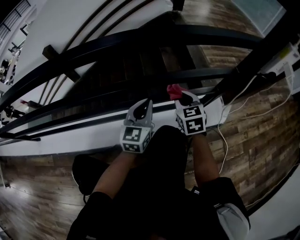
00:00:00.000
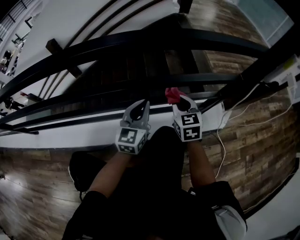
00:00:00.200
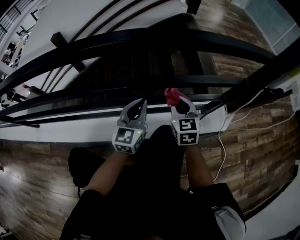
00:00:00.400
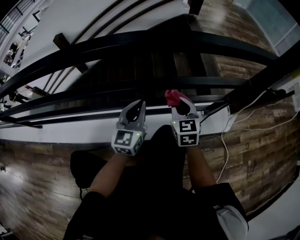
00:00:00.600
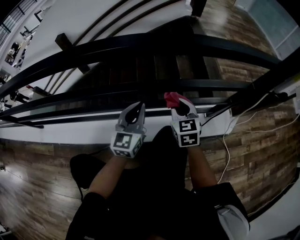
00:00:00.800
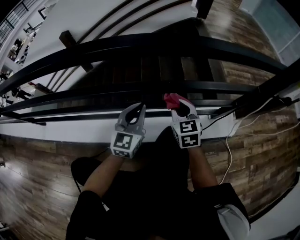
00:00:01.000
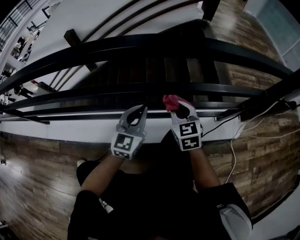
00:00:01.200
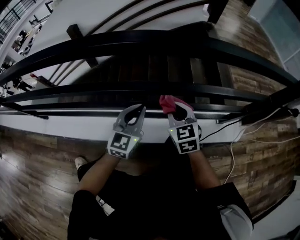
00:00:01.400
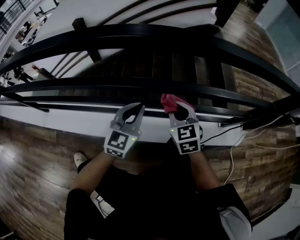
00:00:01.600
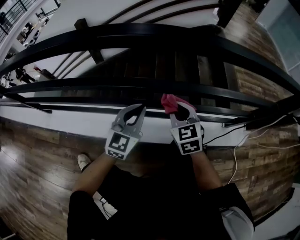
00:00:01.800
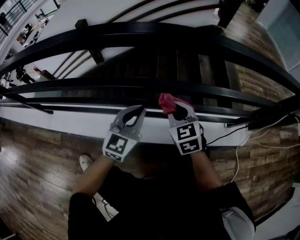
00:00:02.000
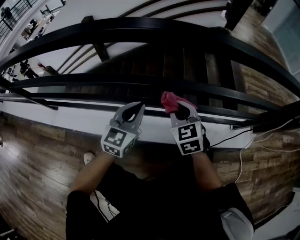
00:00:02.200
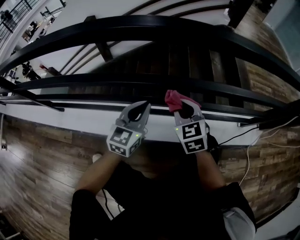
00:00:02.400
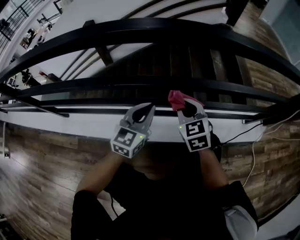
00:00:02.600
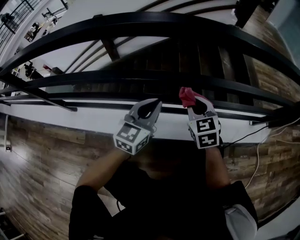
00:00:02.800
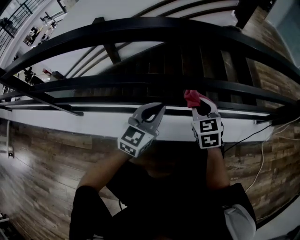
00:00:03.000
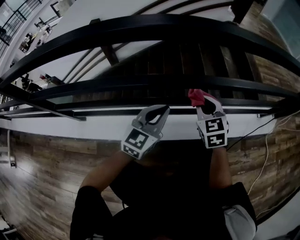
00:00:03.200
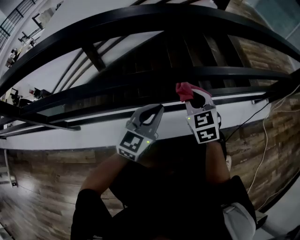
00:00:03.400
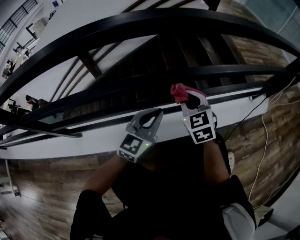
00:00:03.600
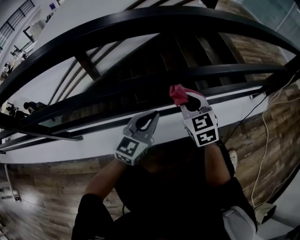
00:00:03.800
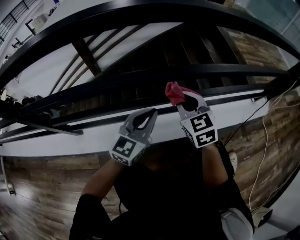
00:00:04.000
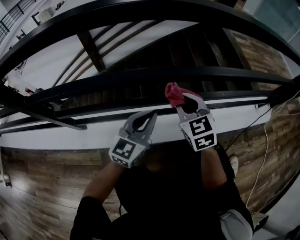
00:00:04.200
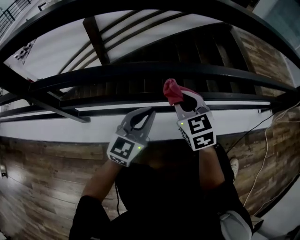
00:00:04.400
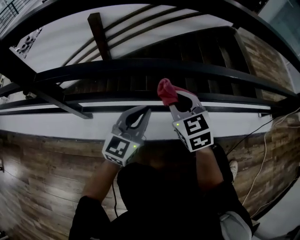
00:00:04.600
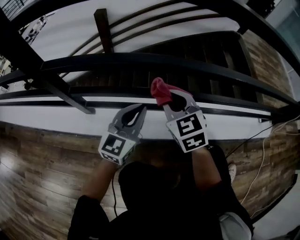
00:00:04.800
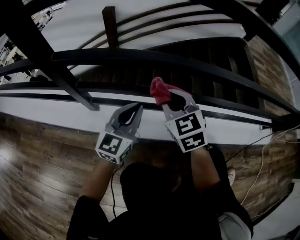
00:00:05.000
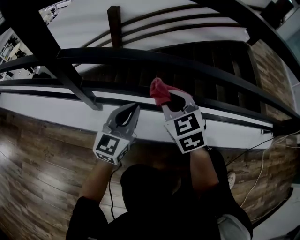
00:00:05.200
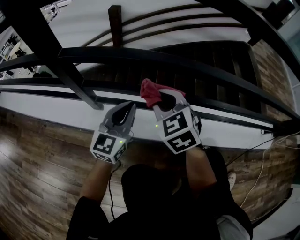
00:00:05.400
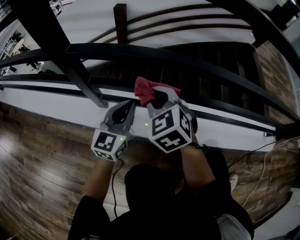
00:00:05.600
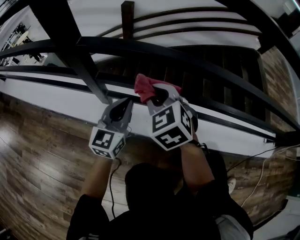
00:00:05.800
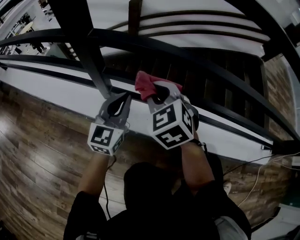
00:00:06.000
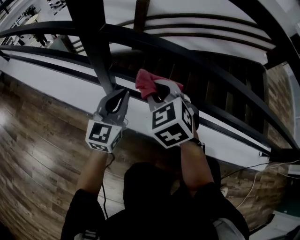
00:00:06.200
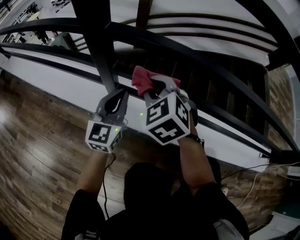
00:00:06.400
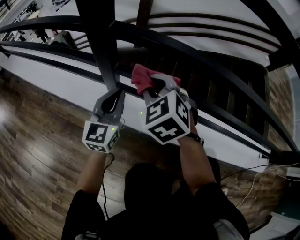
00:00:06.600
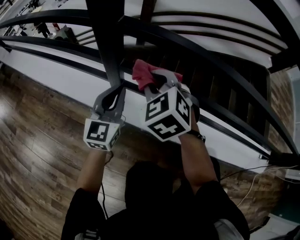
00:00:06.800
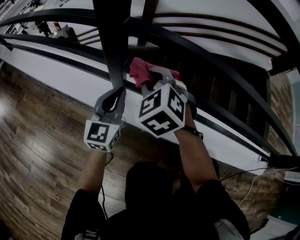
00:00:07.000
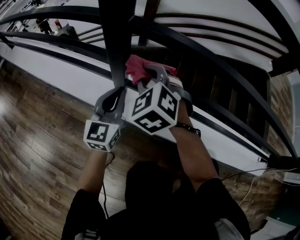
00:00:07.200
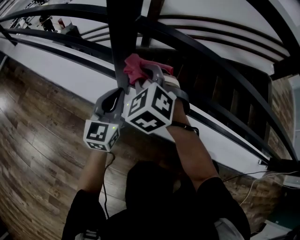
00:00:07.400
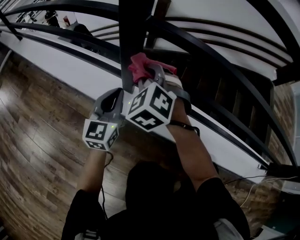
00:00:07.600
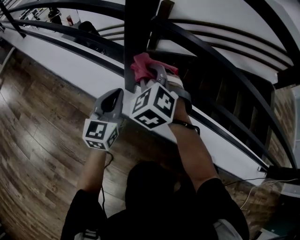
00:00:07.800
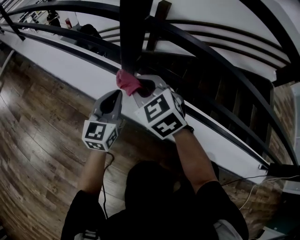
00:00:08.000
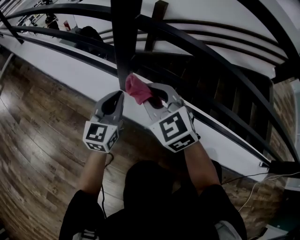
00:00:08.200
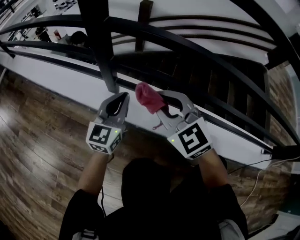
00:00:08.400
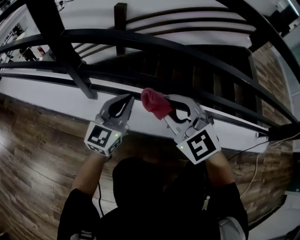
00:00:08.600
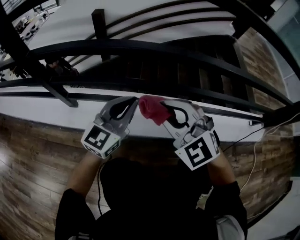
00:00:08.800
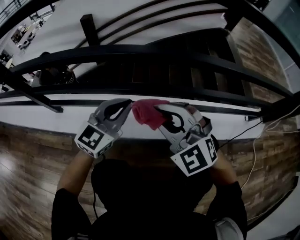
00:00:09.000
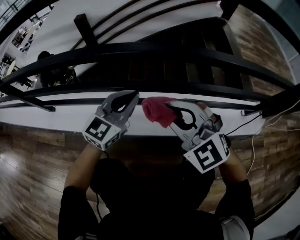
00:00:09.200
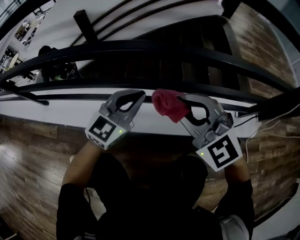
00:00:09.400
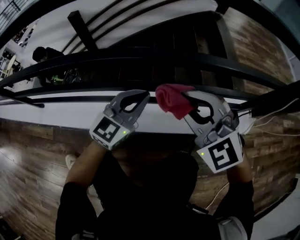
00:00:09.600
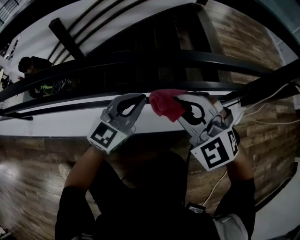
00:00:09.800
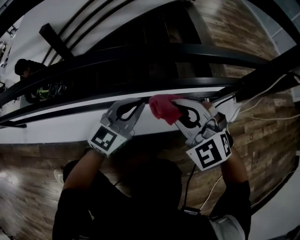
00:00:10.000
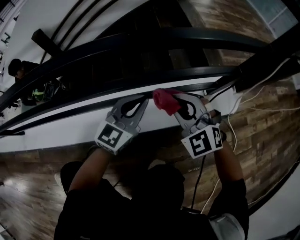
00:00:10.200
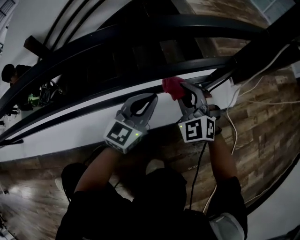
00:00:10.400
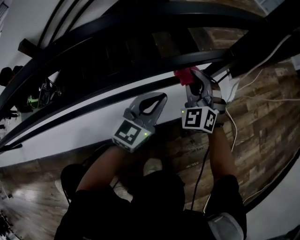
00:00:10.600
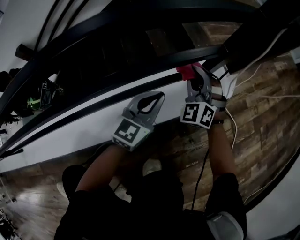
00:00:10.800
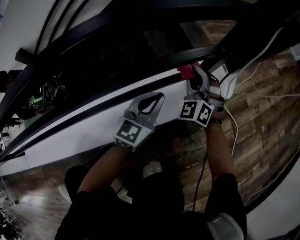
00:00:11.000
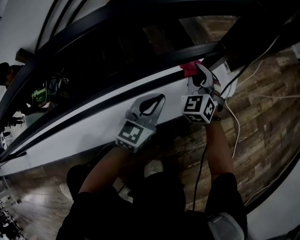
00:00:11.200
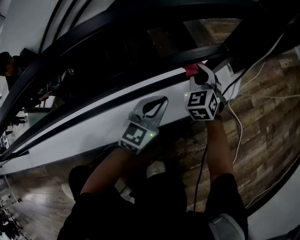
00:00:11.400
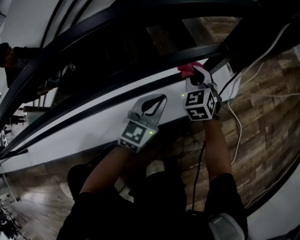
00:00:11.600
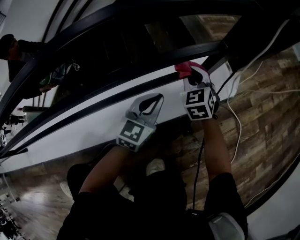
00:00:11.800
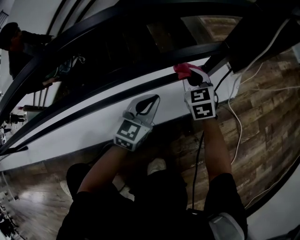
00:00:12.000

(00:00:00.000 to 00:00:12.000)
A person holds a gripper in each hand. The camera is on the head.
00:00:00.000 - 00:00:01.600: The two grippers go roughly 20 cm to the left.
00:00:01.600 - 00:00:03.000: The grippers both shift to the left by approximately 15 cm.
00:00:03.000 - 00:00:04.400: The right gripper goes about 20 cm to the left; the left gripper heads to the left and backward, covering about 15 cm.
00:00:04.400 - 00:00:06.000: Both grippers travel together to the left, approximately 25 cm. The right gripper changes its angle by about 30 degrees, while the left gripper changes its angle by approximately 30 degrees.
00:00:06.000 - 00:00:07.600: The two grippers go some 10 cm to the left. The right gripper swivels roughly 20 degrees.
00:00:07.600 - 00:00:09.000: The two grippers travel together, roughly 40 cm. The right gripper rotates roughly 20 degrees; the left gripper rotates some 50 degrees.
00:00:09.000 - 00:00:10.400: The two grippers travel together, roughly 50 cm. The right gripper rotates roughly 40 degrees.
00:00:10.400 - 00:00:12.000: The right gripper is displaced forward, downward and to the right by approximately 10 cm, and changes its angle by roughly 40 degrees; the left gripper heads downward, covering roughly 5 cm.

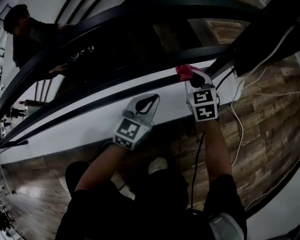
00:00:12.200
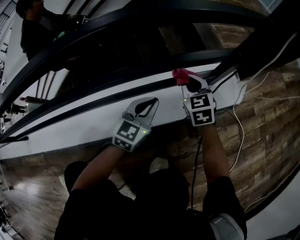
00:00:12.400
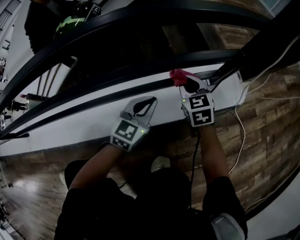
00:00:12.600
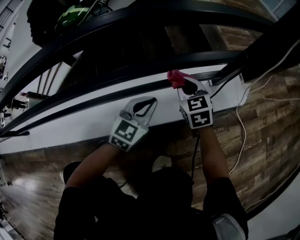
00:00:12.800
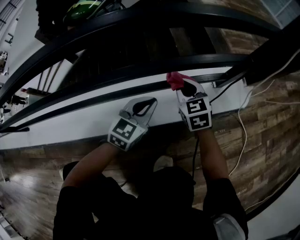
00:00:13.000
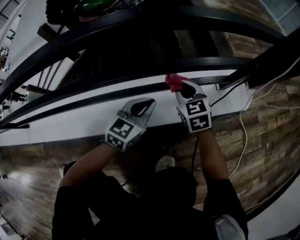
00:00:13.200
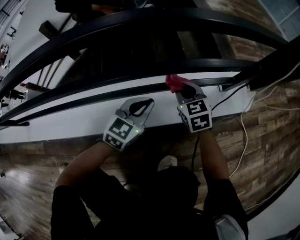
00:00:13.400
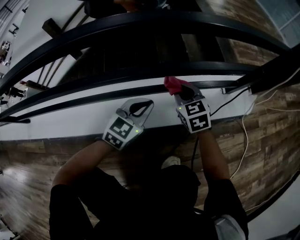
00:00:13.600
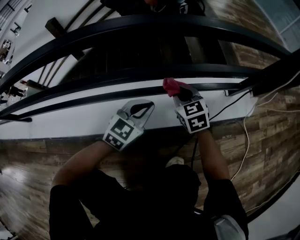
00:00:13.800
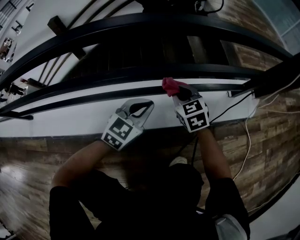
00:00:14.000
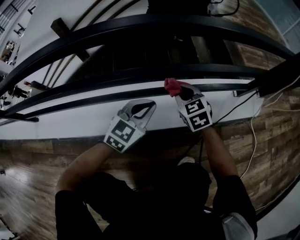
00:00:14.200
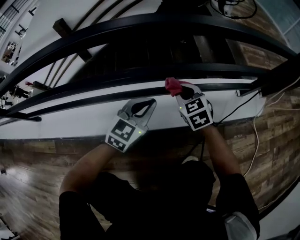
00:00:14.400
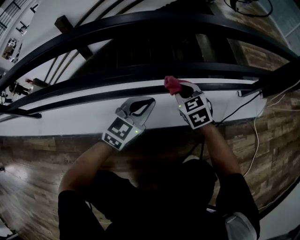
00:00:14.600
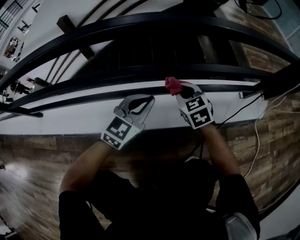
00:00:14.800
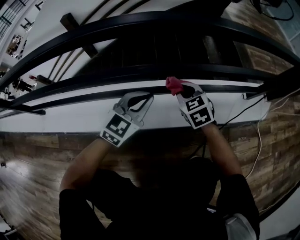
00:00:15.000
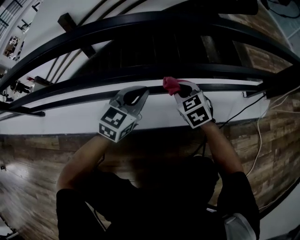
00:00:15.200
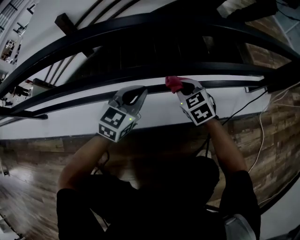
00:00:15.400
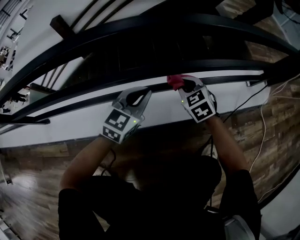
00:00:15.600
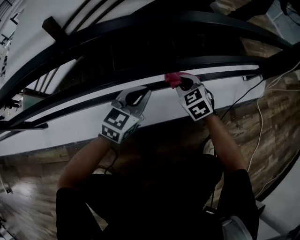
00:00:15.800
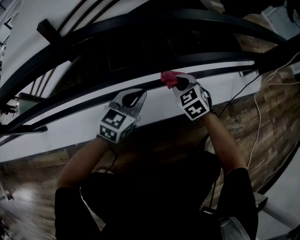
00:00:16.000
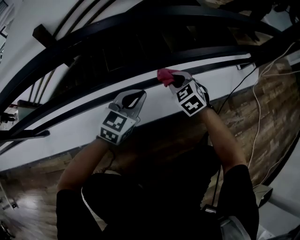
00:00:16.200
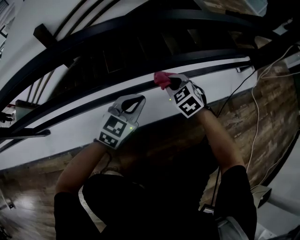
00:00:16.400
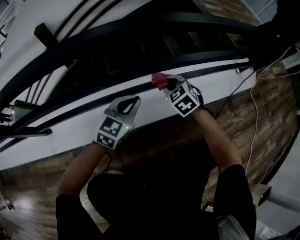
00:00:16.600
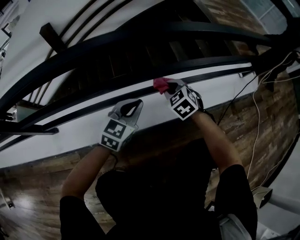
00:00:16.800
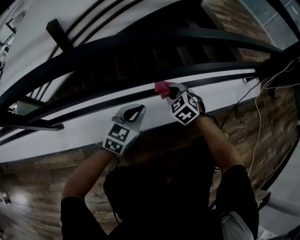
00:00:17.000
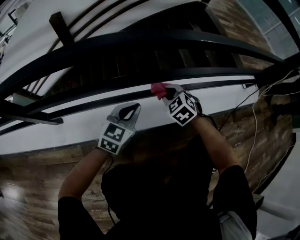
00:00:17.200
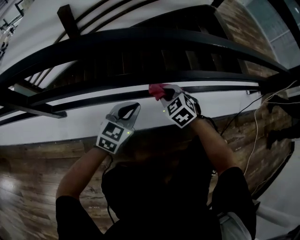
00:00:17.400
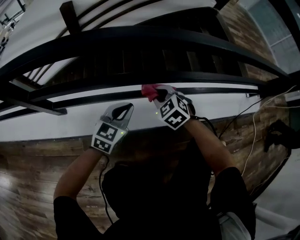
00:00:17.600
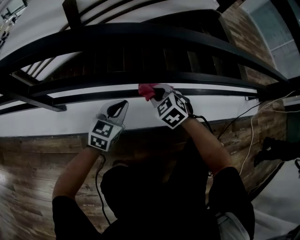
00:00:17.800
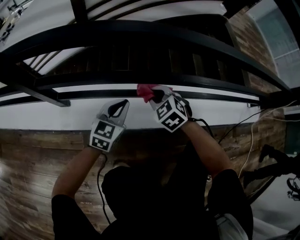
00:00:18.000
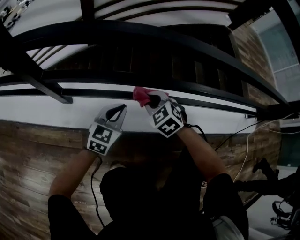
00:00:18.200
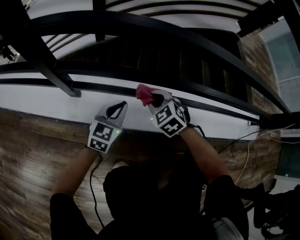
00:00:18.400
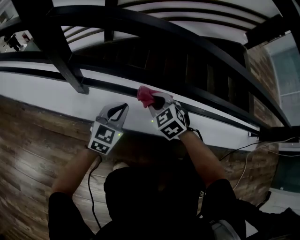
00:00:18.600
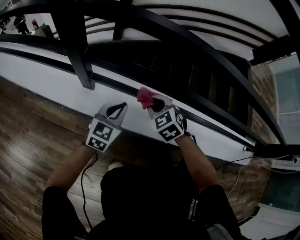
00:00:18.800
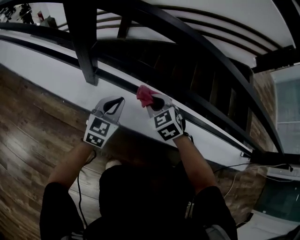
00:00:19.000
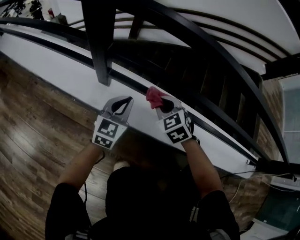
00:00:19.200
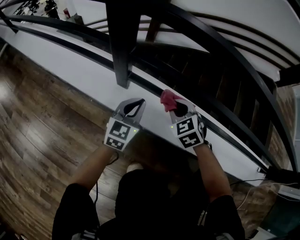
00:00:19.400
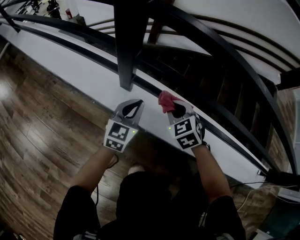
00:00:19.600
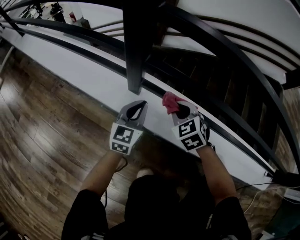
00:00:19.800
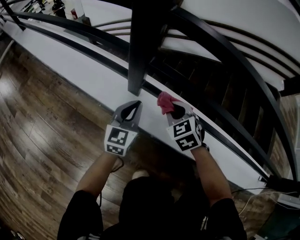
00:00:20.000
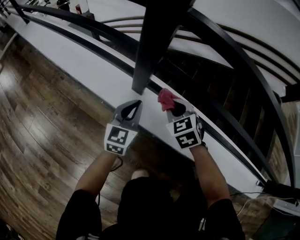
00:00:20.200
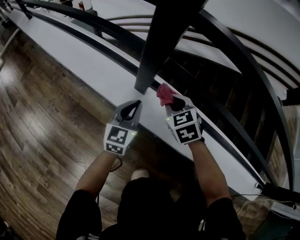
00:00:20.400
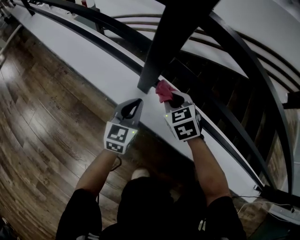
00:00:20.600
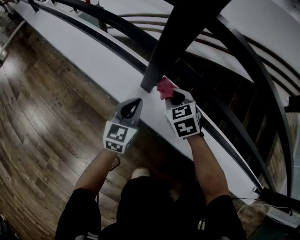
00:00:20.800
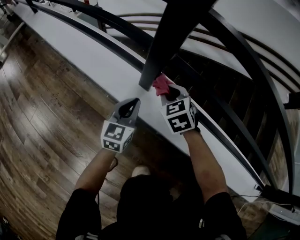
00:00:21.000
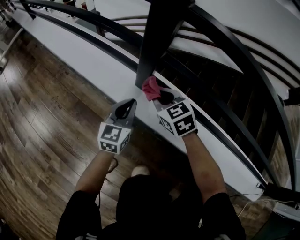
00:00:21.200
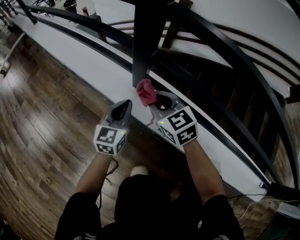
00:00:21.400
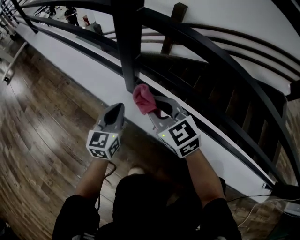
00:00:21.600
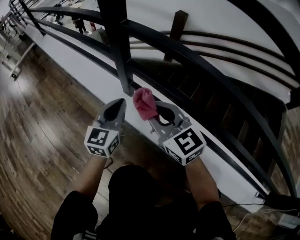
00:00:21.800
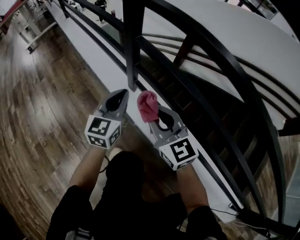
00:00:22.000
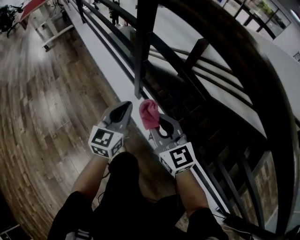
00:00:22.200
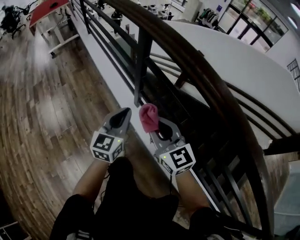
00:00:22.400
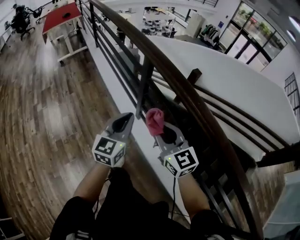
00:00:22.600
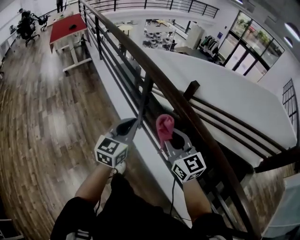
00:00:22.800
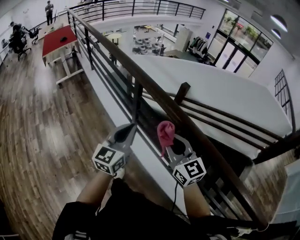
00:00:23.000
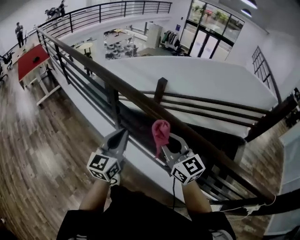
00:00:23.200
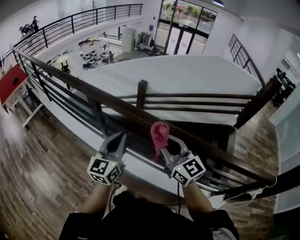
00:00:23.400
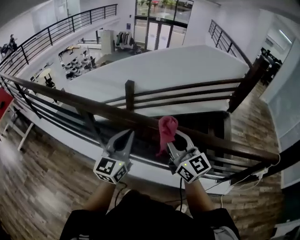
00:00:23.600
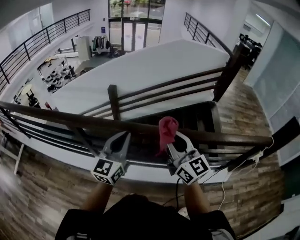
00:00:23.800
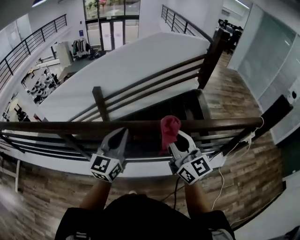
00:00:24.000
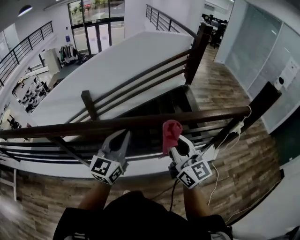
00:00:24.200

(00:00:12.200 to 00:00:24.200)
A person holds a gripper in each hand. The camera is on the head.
00:00:12.200 - 00:00:13.800: Both grippers travel together to the left and backward, some 20 cm.
00:00:13.800 - 00:00:15.200: The two grippers go about 10 cm to the left.
00:00:15.200 - 00:00:16.600: The grippers both shift to the left and backward by approximately 15 cm.
00:00:16.600 - 00:00:18.200: Both grippers travel together to the left, some 25 cm. The right gripper changes its angle by approximately 20 degrees. The left gripper rotates about 20 degrees.
00:00:18.200 - 00:00:19.800: Both grippers move to the left, approximately 15 cm. The left gripper rotates some 30 degrees.
00:00:19.800 - 00:00:21.200: The right gripper is displaced to the left by about 10 cm, while the left gripper goes roughly 5 cm to the left.
00:00:21.200 - 00:00:22.600: The grippers both shift upward by about 60 cm. The right gripper angles its fingers upward, by approximately 30 degrees; the left gripper changes its angle by roughly 20 degrees.
00:00:22.600 - 00:00:24.200: The left gripper moves roughly 30 cm, and rotates some 60 degrees; the right gripper ends up roughly 30 cm from where it was, and changes its angle by some 70 degrees.
